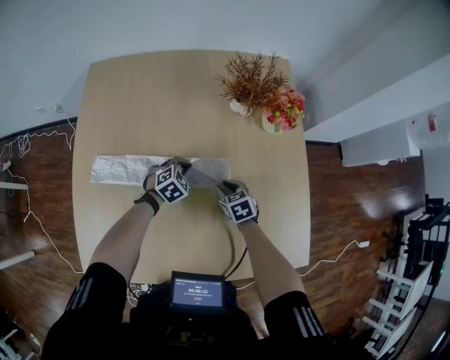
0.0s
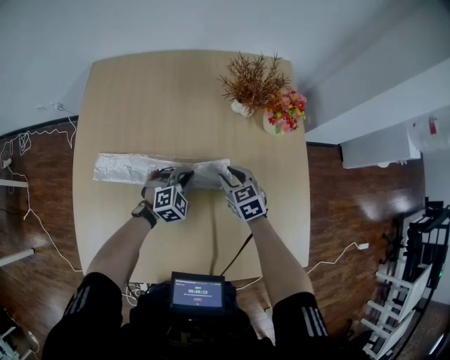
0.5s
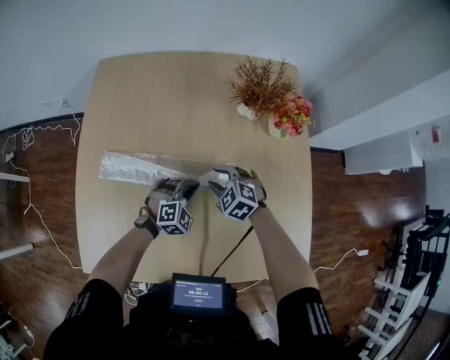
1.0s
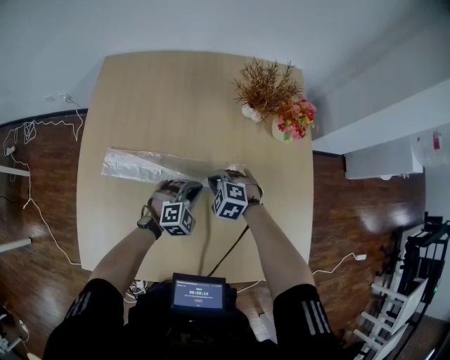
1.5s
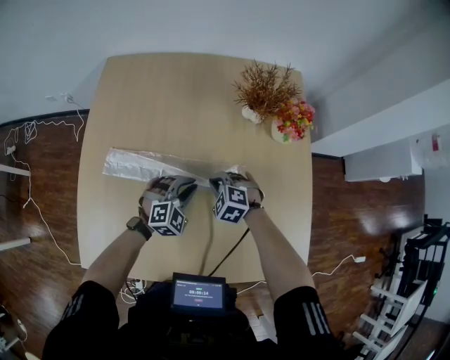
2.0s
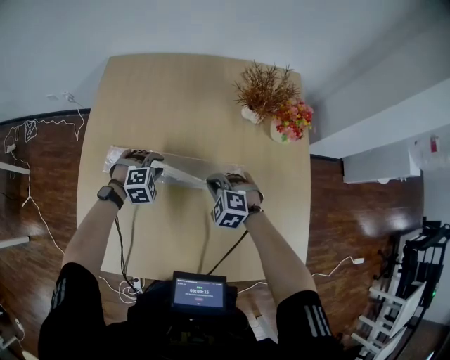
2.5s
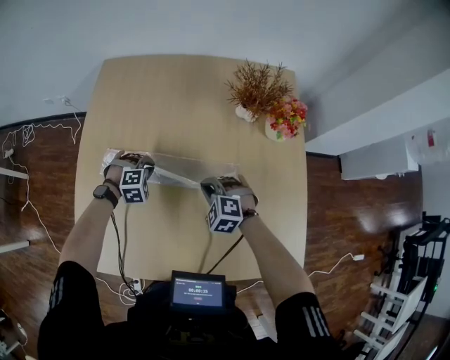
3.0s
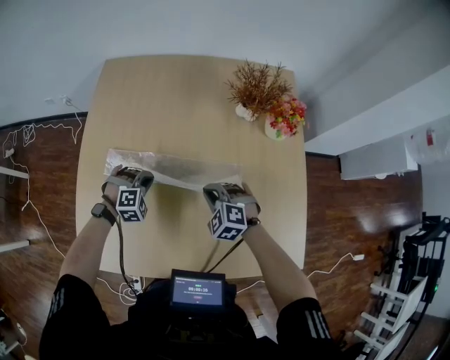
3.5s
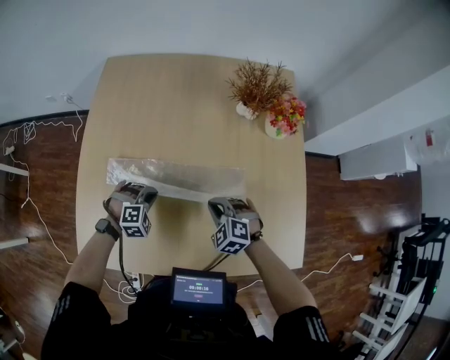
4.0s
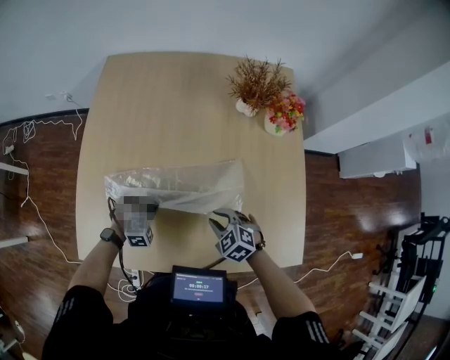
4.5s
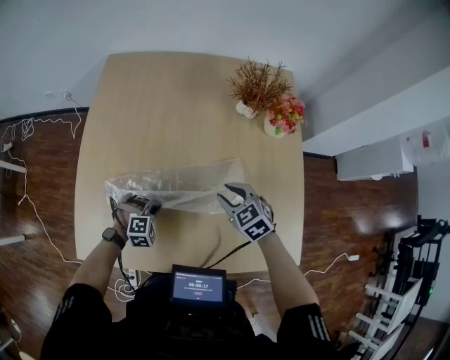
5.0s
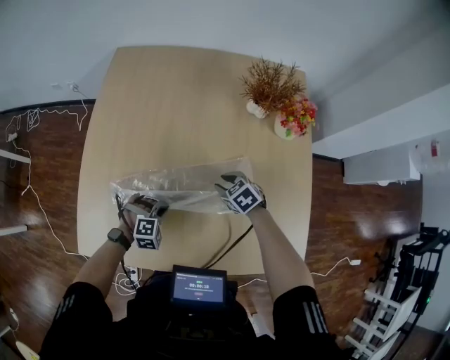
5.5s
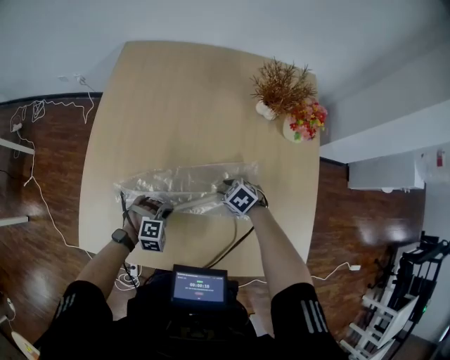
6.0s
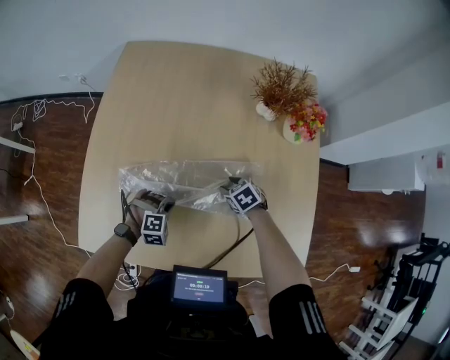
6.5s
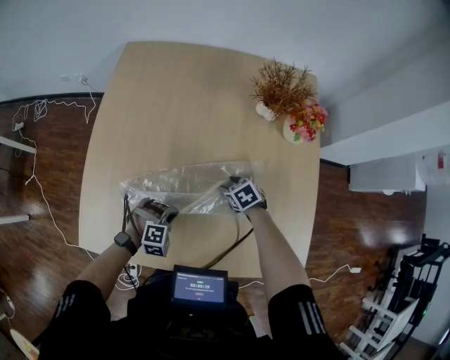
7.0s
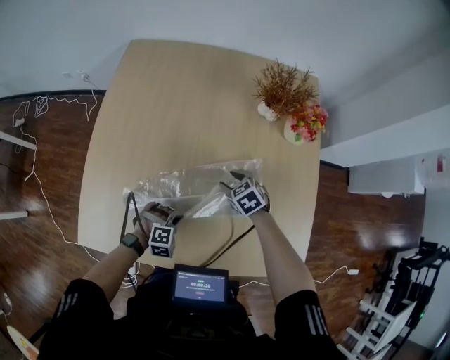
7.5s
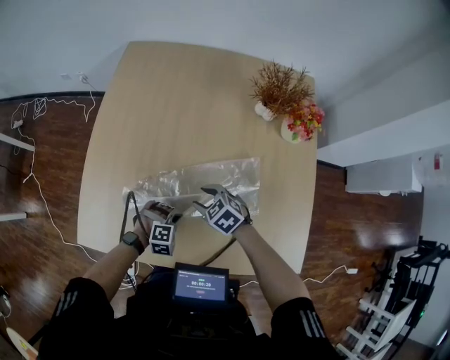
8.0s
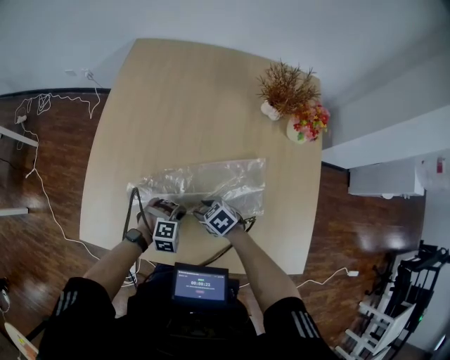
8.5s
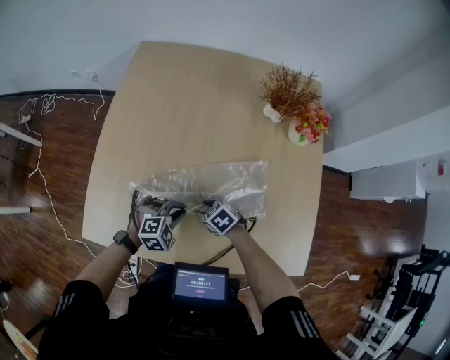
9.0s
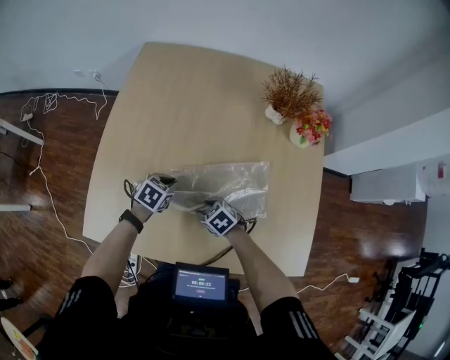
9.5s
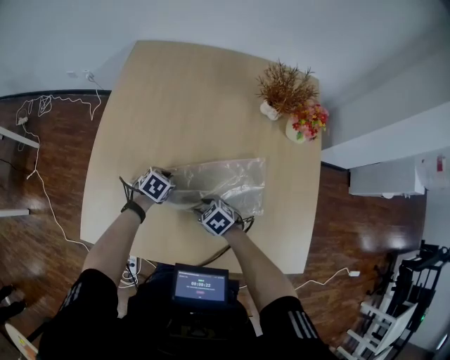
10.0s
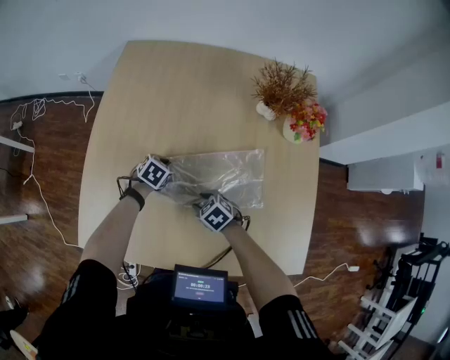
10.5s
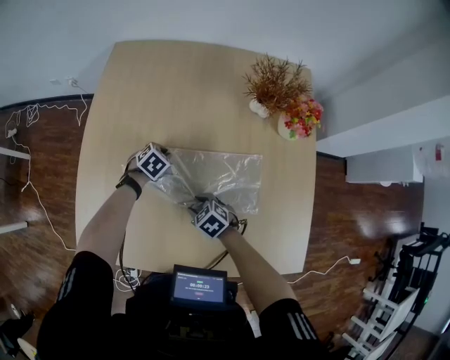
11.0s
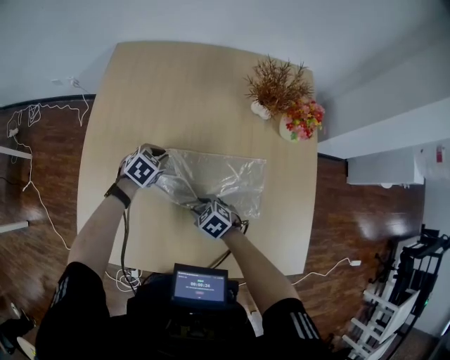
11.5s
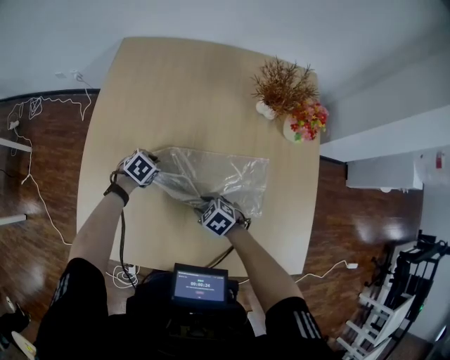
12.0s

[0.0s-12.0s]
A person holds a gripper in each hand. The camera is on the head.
0.0s to 2.0s: The right gripper travels to the left and upward by approximately 10 cm, twists approximately 50 degrees counterclockwise, seen from behind, and closes. The left gripper goes roughly 10 cm upward and backward, and swivels about 20 degrees.
2.0s to 4.0s: The right gripper shifts about 10 cm backward; the left gripper is displaced to the left and downward by some 15 cm, and changes its angle by about 30 degrees.
4.0s to 6.0s: The left gripper heads backward, covering roughly 10 cm. The right gripper travels downward by about 10 cm, swivels approximately 30 degrees, and opens.
6.0s to 8.0s: The left gripper shifts by some 5 cm, while the right gripper moves to the left and upward, some 10 cm.
8.0s to 10.0s: The left gripper moves some 10 cm upward and comes back, and rotates around the line of its fingers by roughly 60 degrees, counterclockwise from behind; the right gripper travels downward by approximately 5 cm.
10.0s to 12.0s: The left gripper is displaced forward by roughly 10 cm.

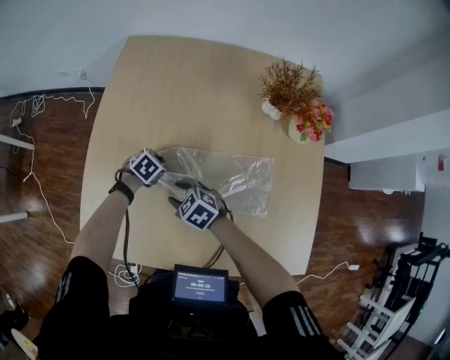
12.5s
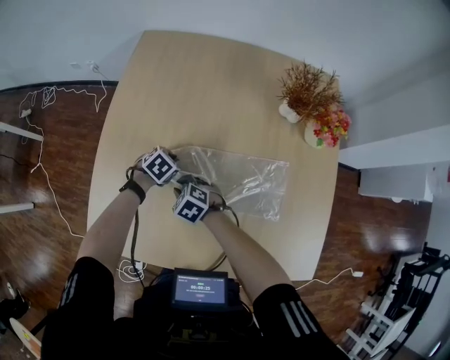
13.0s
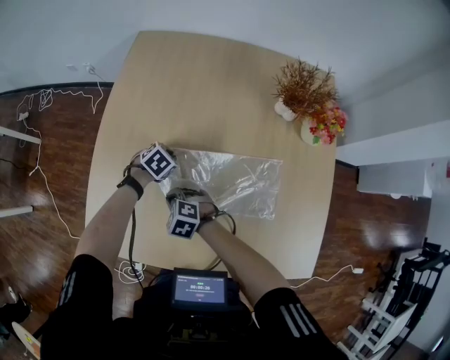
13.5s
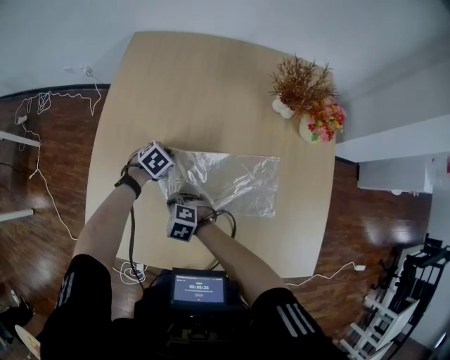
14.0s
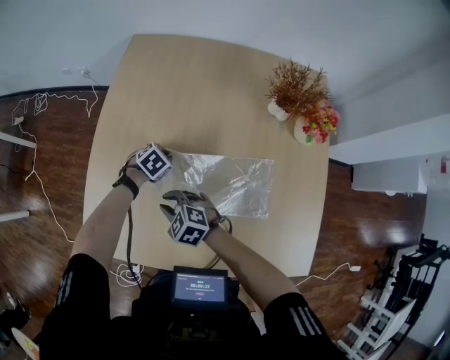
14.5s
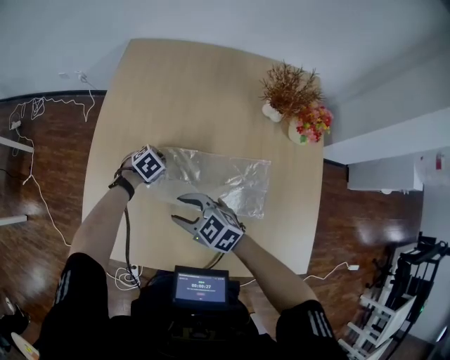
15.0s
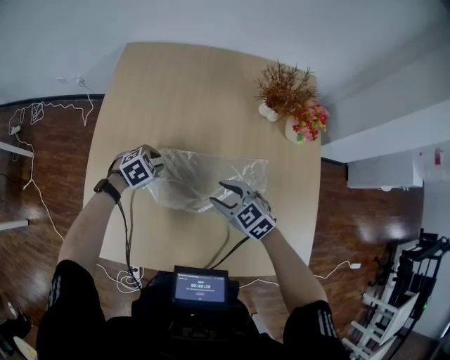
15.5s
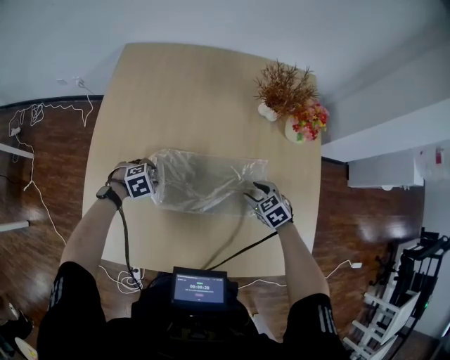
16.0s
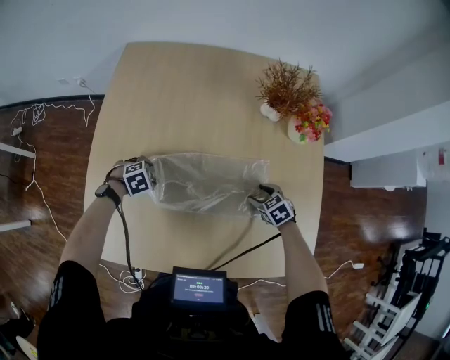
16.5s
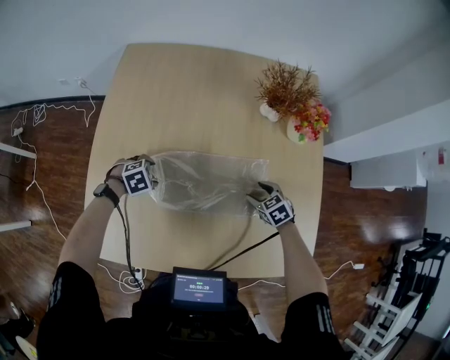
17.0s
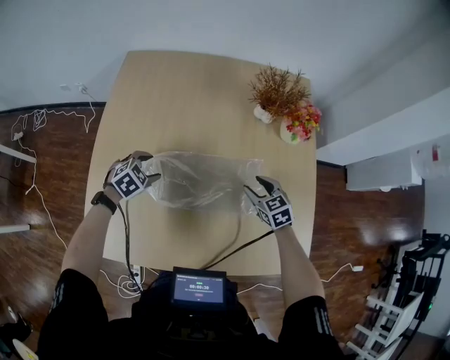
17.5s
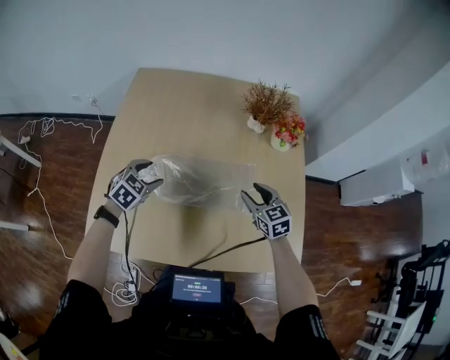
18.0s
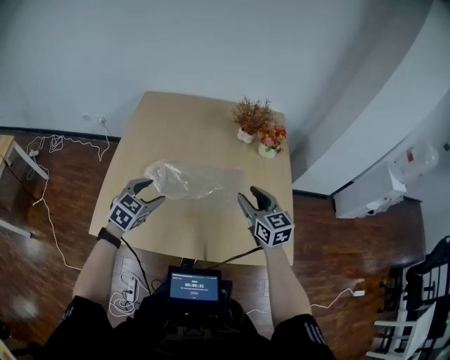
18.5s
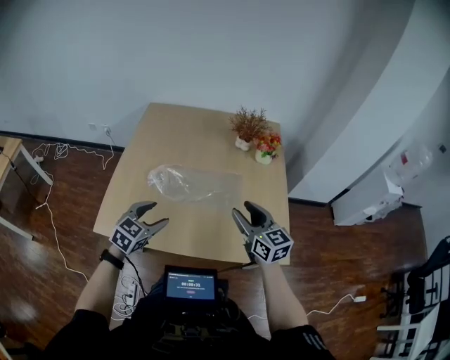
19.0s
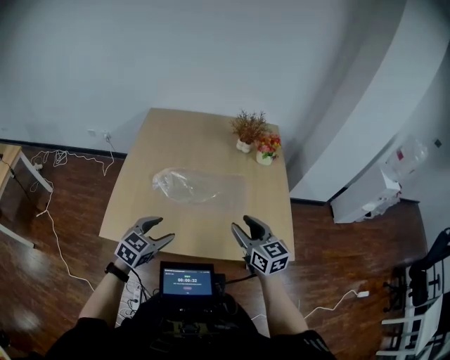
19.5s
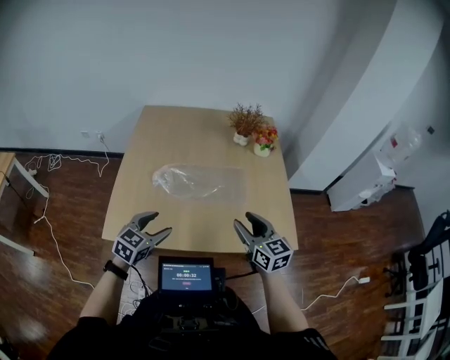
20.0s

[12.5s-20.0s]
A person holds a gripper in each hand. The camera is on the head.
12.5s to 14.5s: The right gripper goes downward and returns, roughly 5 cm each way, and closes its fingers.
14.5s to 16.5s: The left gripper travels upward and back again, about 5 cm each way, swivels roughly 20 degrees, and opens its fingers; the right gripper shifts by roughly 35 cm, changes its angle by about 40 degrees, and opens.
16.5s to 18.0s: Both grippers travel together upward, some 20 cm. The left gripper rotates approximately 40 degrees, while the right gripper tilts its fingers some 30 degrees upward.
18.0s to 20.0s: The left gripper goes approximately 25 cm backward, and changes its angle by approximately 20 degrees. The right gripper heads backward and upward, covering about 30 cm, and rotates roughly 20 degrees.

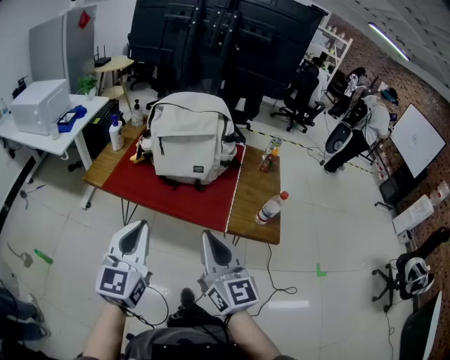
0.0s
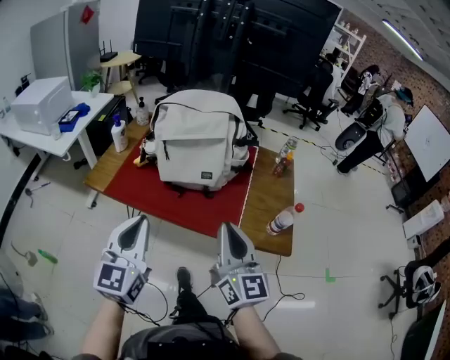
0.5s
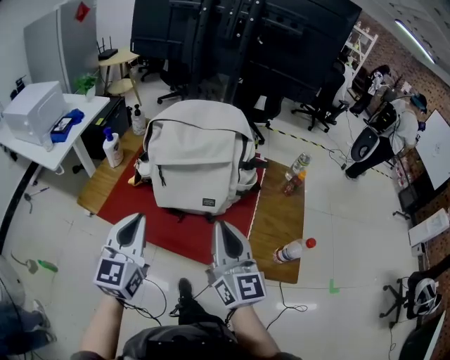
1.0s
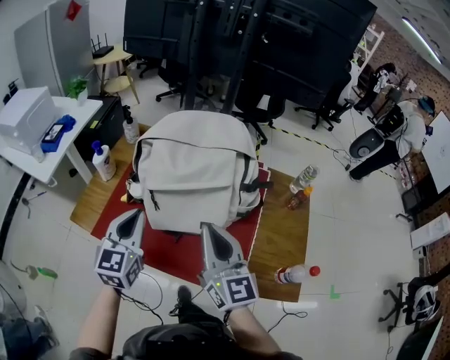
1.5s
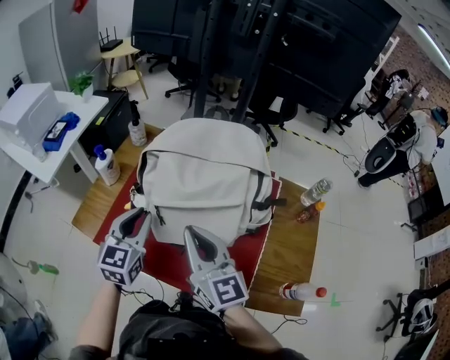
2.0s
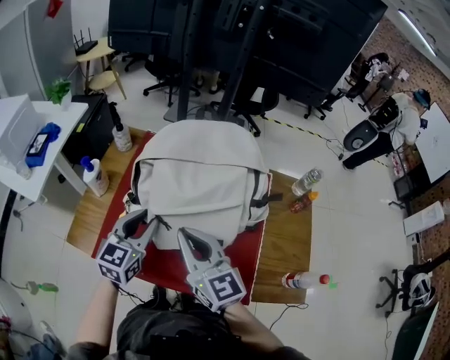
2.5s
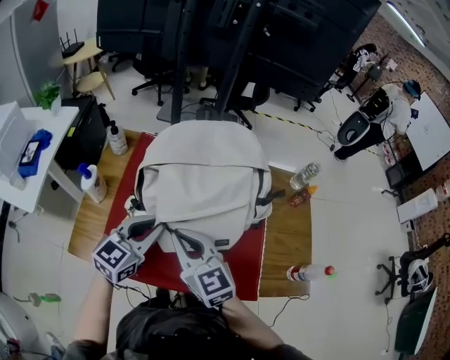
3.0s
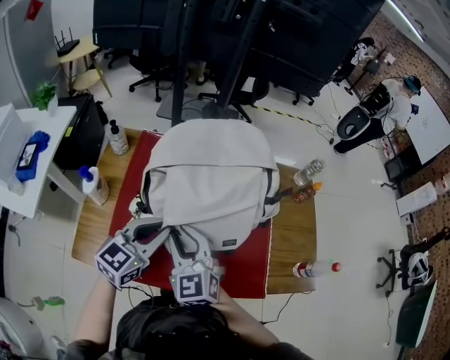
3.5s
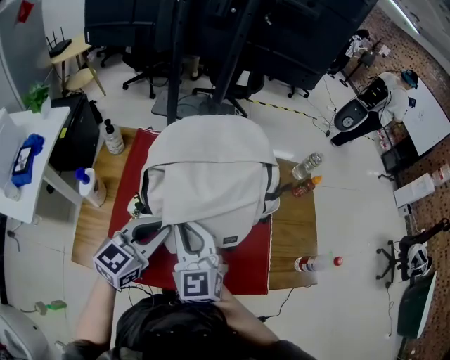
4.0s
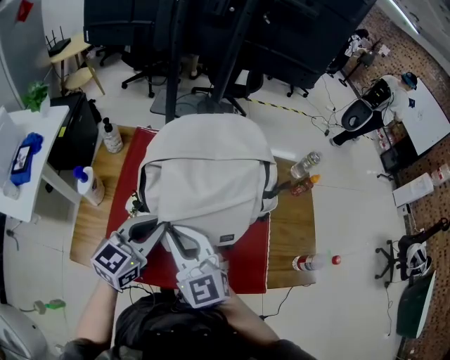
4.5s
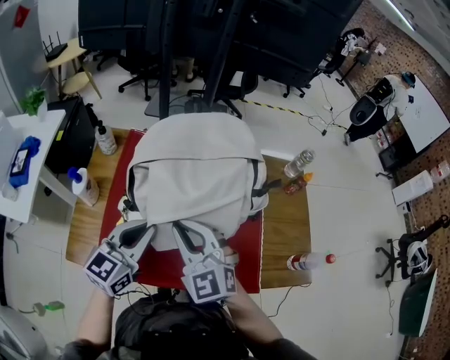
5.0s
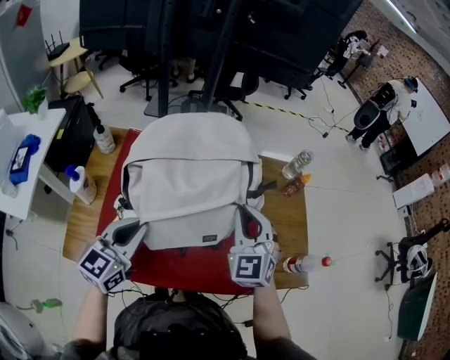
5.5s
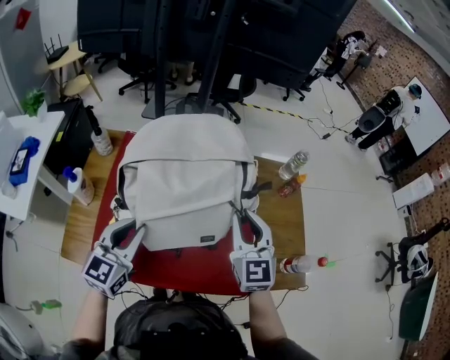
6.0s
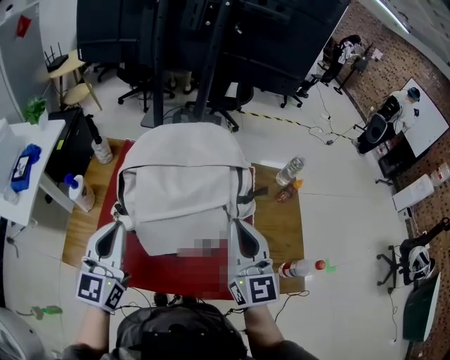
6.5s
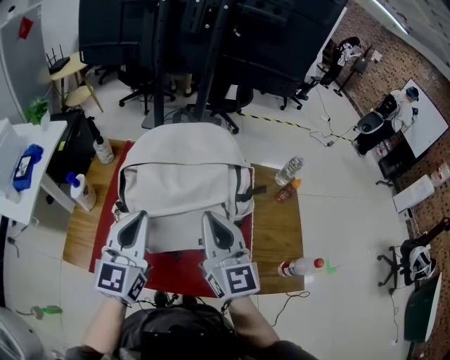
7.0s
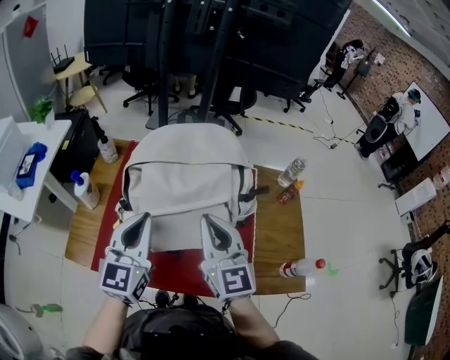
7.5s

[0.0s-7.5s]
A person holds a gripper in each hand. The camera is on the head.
0.0s to 2.0s: Both grippers are carried forward, approximately 50 cm.
2.0s to 4.0s: The left gripper changes its angle by some 40 degrees. Meanwhile the right gripper moves some 15 cm, and changes its angle by approximately 40 degrees.
4.0s to 5.5s: The right gripper is displaced to the right by roughly 20 cm.
5.5s to 7.5s: The right gripper goes about 10 cm to the left, upward and backward, and changes its angle by roughly 40 degrees. Meanwhile the left gripper goes approximately 5 cm upward, and turns by approximately 20 degrees.
